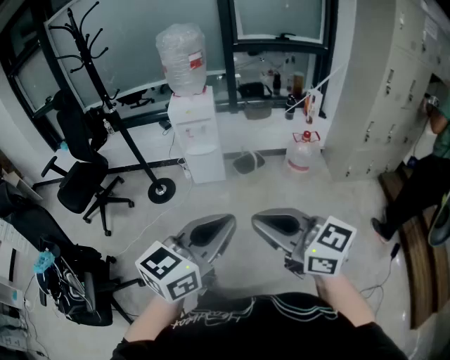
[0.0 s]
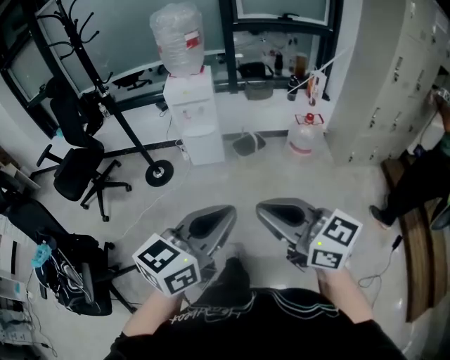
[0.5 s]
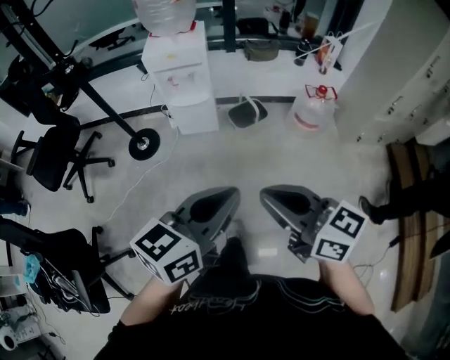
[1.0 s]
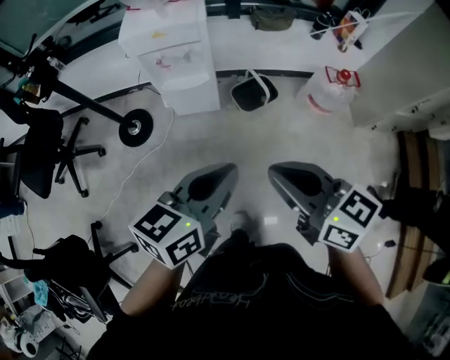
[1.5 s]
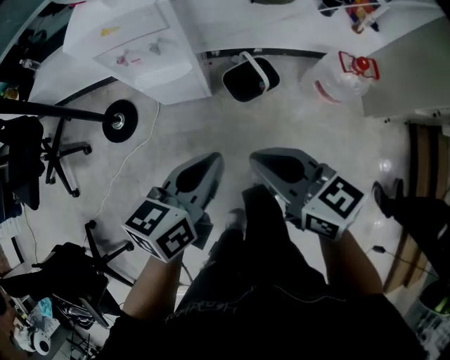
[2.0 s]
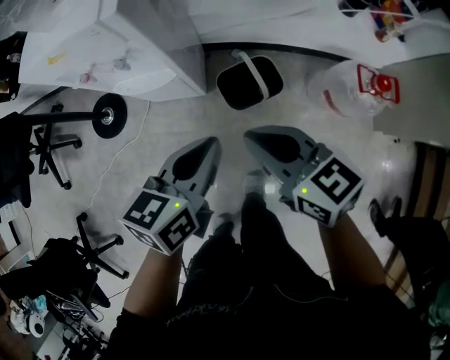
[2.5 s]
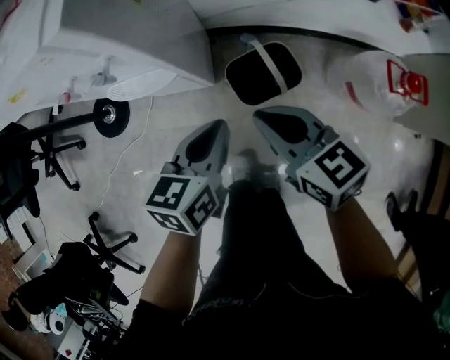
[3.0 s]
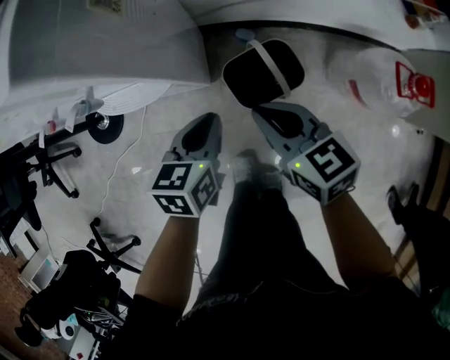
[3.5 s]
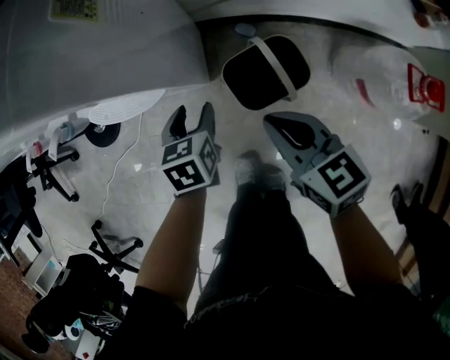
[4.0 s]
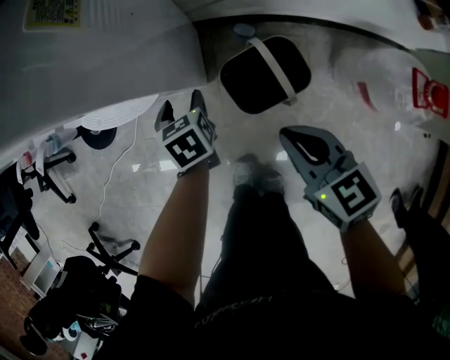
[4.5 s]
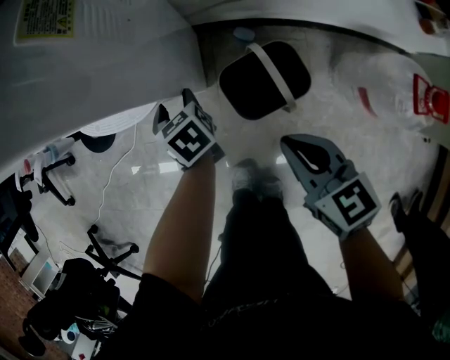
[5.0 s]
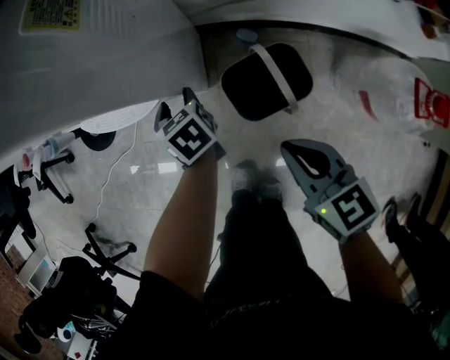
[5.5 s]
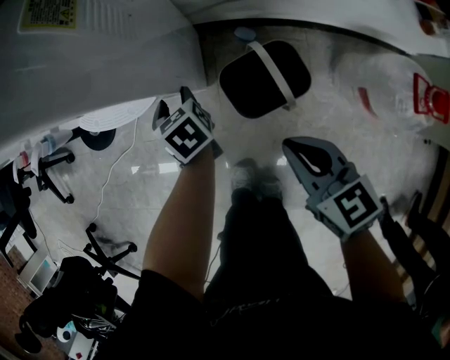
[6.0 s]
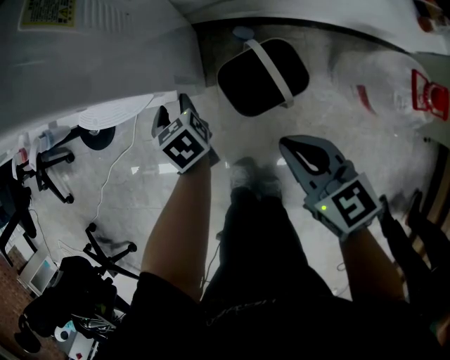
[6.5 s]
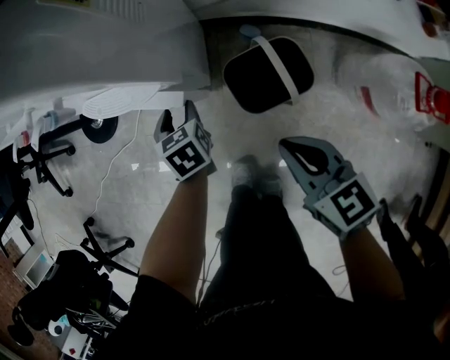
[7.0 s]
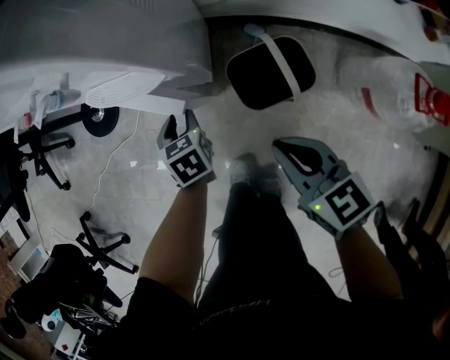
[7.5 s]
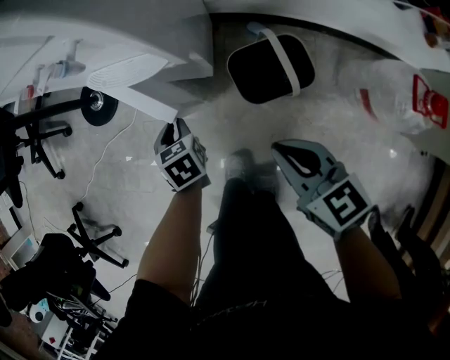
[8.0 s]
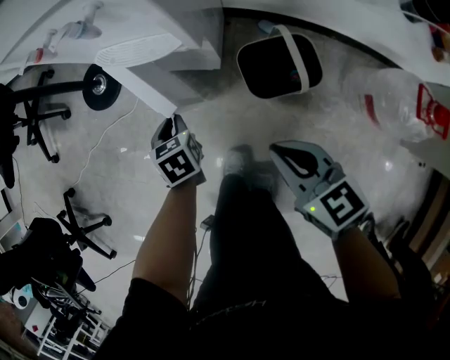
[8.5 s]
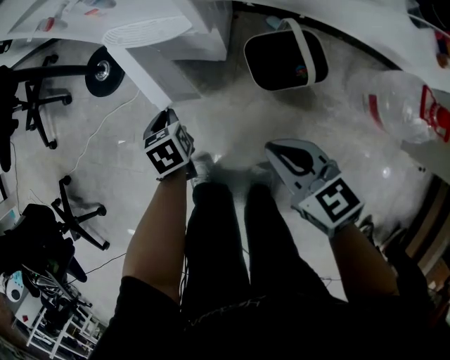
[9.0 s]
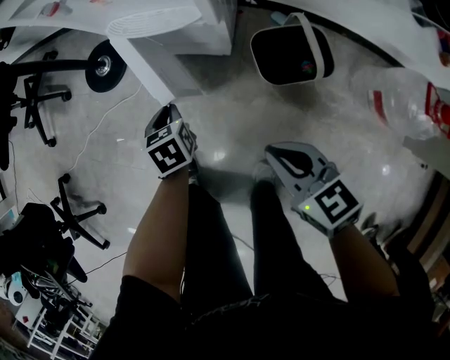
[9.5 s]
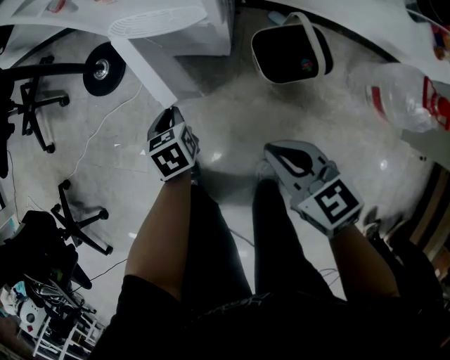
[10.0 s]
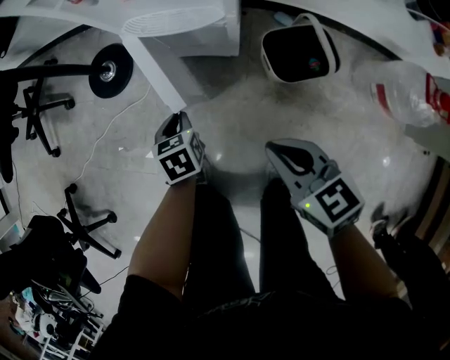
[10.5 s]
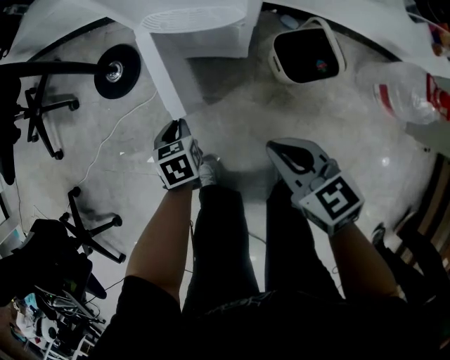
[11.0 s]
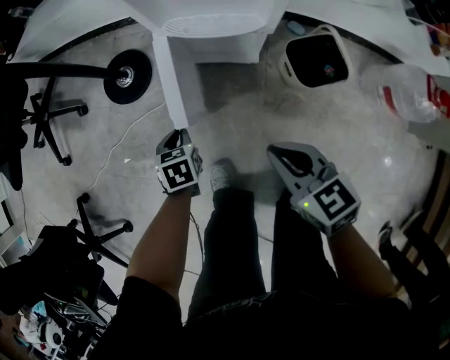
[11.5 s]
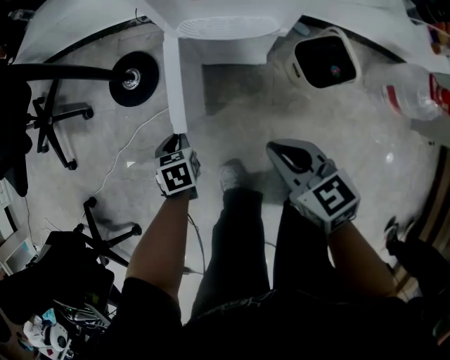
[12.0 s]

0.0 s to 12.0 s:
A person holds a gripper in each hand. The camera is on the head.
0.0 to 2.0 s: Both grippers are carried forward, roughly 60 cm. Both grippers move downward, approximately 35 cm. The left gripper changes its angle by roughly 30 degrees. Meanwhile the right gripper rotates some 30 degrees.
2.0 to 4.0 s: The two grippers go some 40 cm downward and forward. The left gripper angles its fingers downward, by about 30 degrees, and opens up.
4.0 to 6.0 s: The left gripper moves forward and downward, roughly 10 cm, and swivels about 30 degrees. The right gripper moves some 5 cm.
6.0 to 8.0 s: The right gripper goes approximately 5 cm to the left; the left gripper goes about 15 cm to the left and backward, and closes.
8.0 to 10.0 s: Both grippers move to the left, roughly 10 cm.
10.0 to 12.0 s: The right gripper shifts roughly 15 cm to the left and forward; the left gripper travels to the left by about 20 cm.

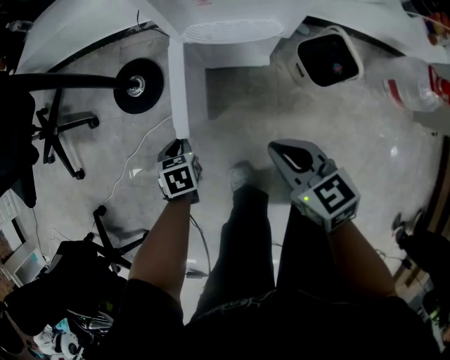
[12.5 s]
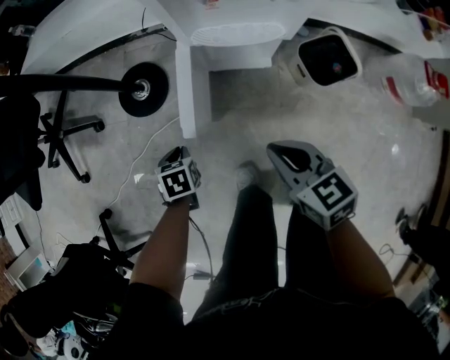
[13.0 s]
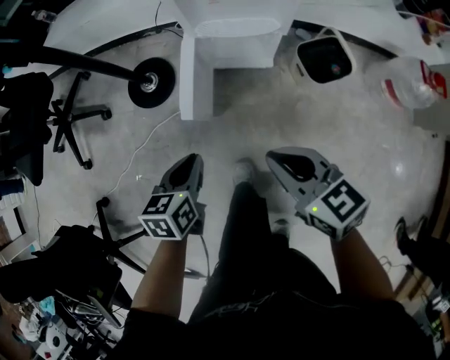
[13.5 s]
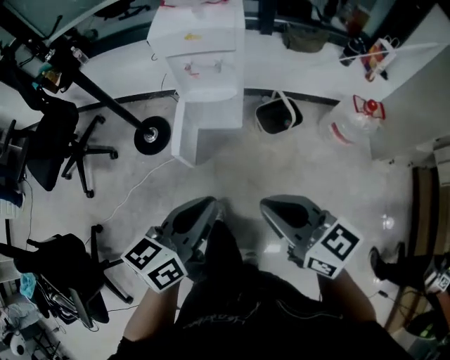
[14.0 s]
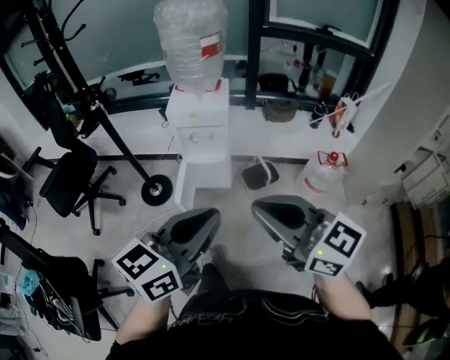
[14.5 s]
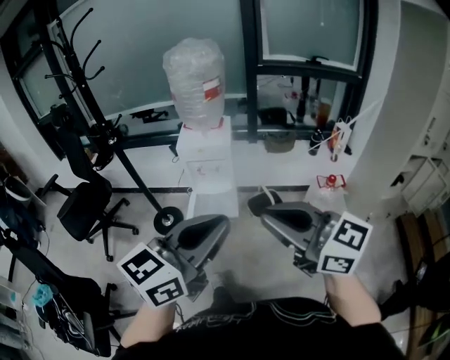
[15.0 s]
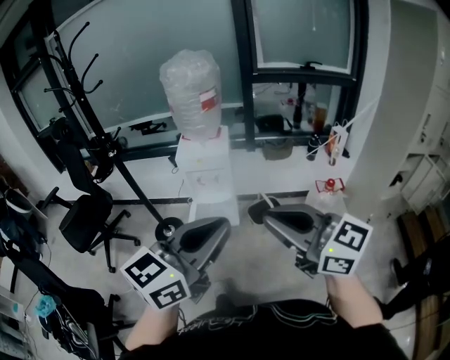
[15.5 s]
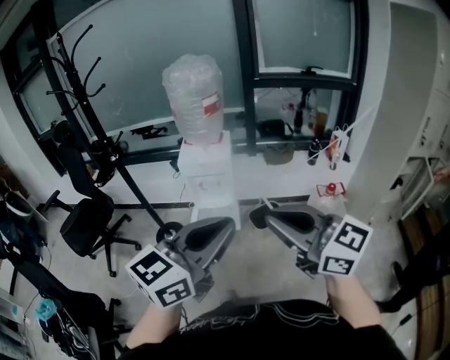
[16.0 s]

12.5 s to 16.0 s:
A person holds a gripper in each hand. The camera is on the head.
12.5 to 14.5 s: Both grippers move upward and backward, about 70 cm. The right gripper tilts its fingers approximately 40 degrees upward. The left gripper tilts its fingers about 60 degrees upward.
14.5 to 16.0 s: Both grippers travel together upward, approximately 10 cm.

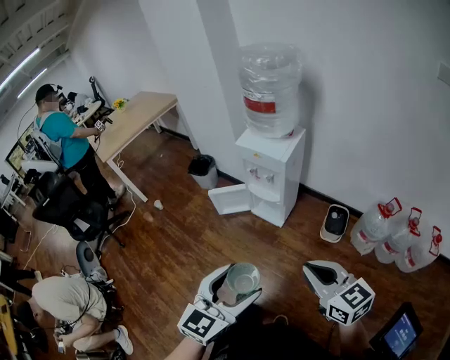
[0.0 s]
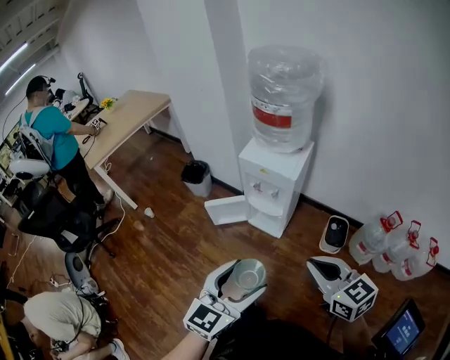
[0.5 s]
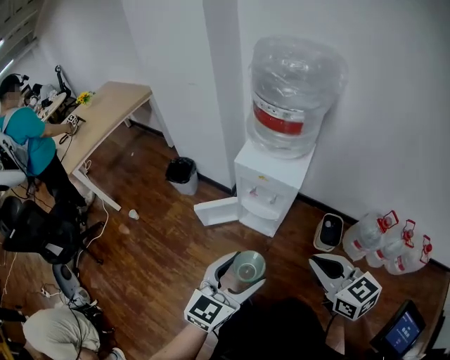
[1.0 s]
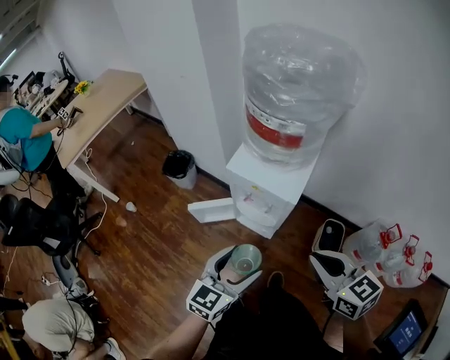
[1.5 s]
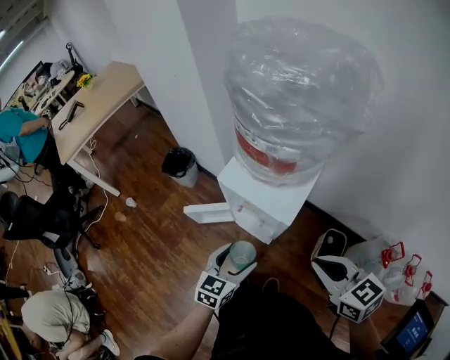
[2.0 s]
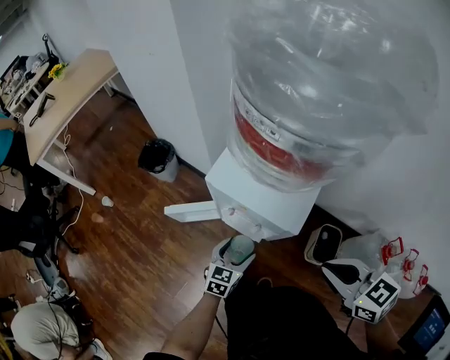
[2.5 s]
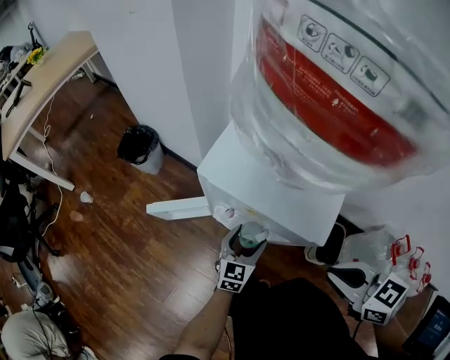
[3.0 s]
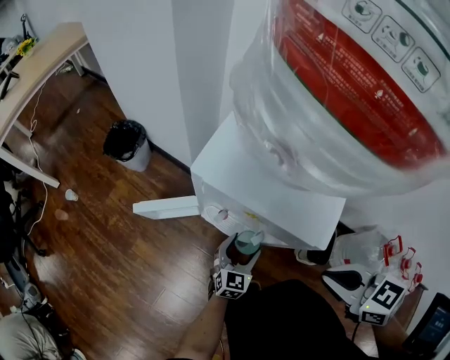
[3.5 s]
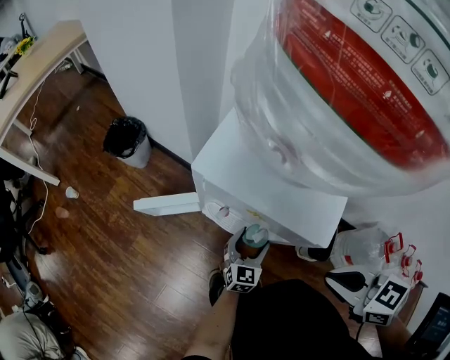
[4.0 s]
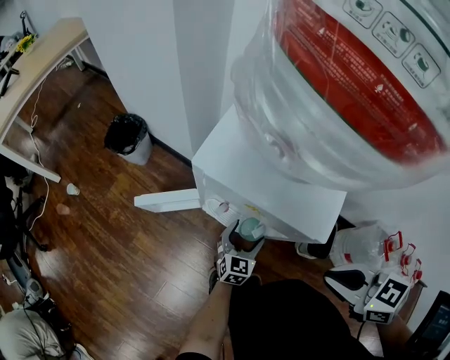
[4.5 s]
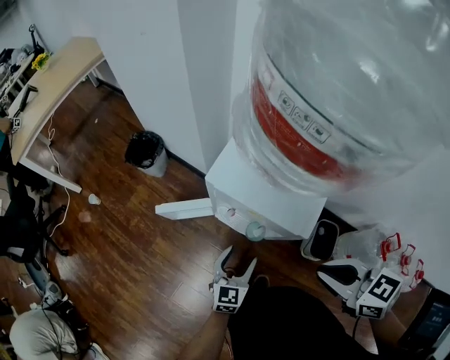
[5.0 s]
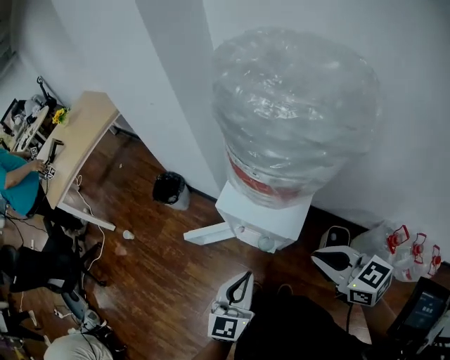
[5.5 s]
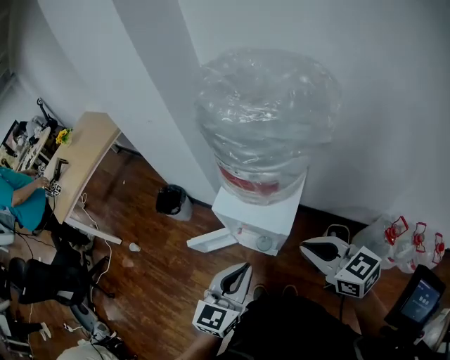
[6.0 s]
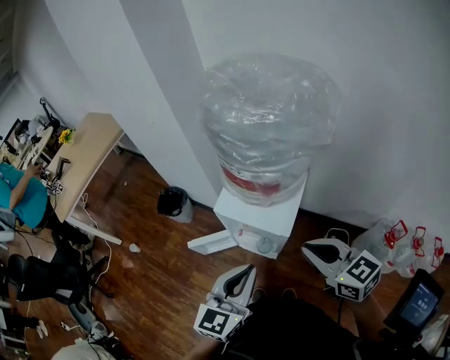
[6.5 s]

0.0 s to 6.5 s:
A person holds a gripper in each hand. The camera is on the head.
0.0 to 2.0 s: The pair of grippers is taken forward, roughly 40 cm. The left gripper travels downward by approximately 25 cm, and swivels some 20 degrees.
2.0 to 4.5 s: The left gripper heads downward, covering some 35 cm; the right gripper heads downward, covering about 20 cm.
4.5 to 6.5 s: The left gripper is displaced upward by some 50 cm, and closes up. Meanwhile the right gripper travels upward by some 25 cm, and rotates approximately 30 degrees.
